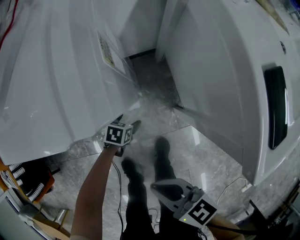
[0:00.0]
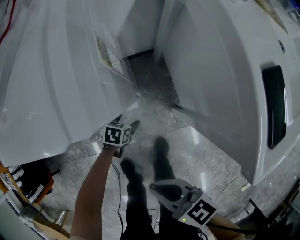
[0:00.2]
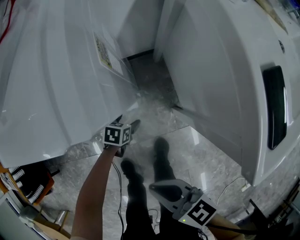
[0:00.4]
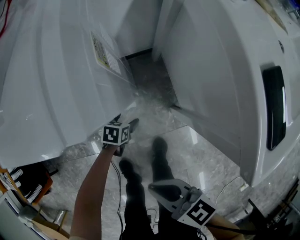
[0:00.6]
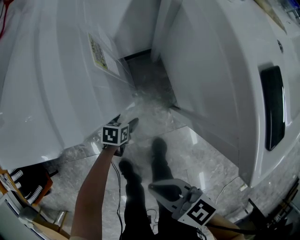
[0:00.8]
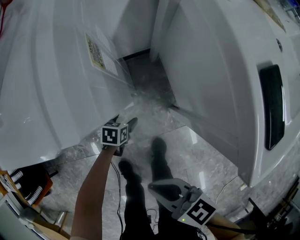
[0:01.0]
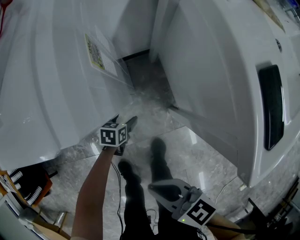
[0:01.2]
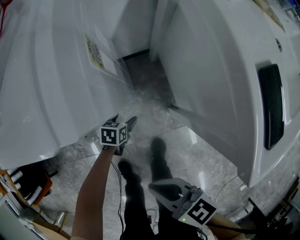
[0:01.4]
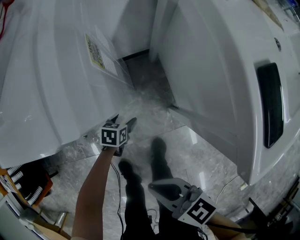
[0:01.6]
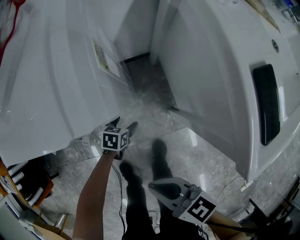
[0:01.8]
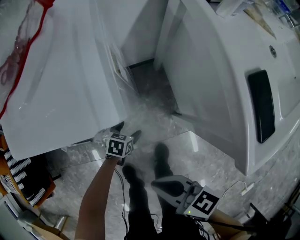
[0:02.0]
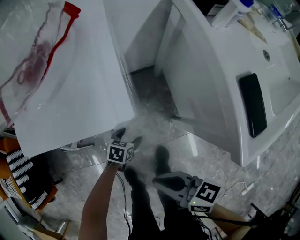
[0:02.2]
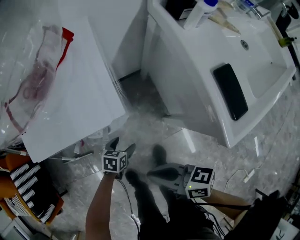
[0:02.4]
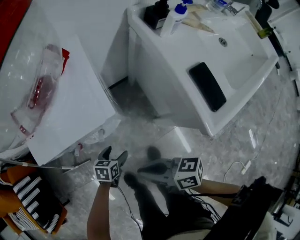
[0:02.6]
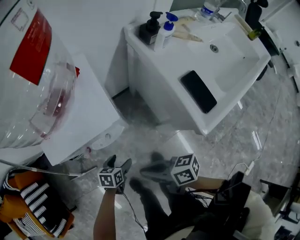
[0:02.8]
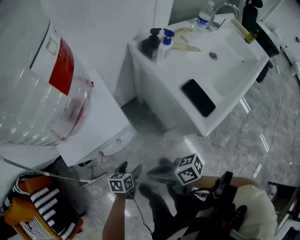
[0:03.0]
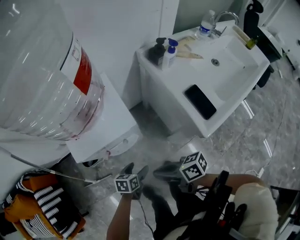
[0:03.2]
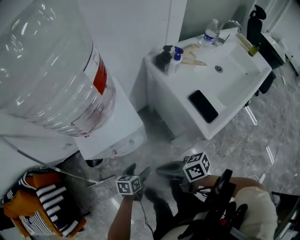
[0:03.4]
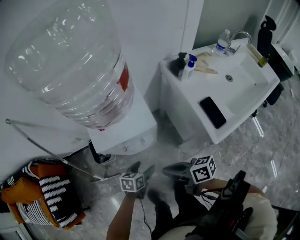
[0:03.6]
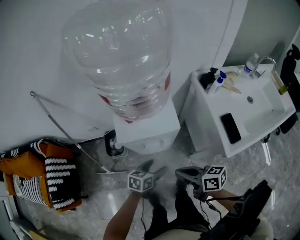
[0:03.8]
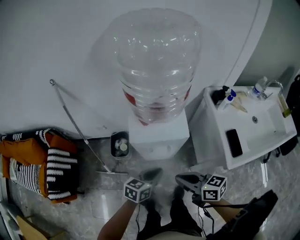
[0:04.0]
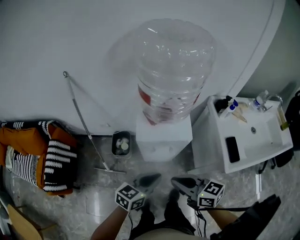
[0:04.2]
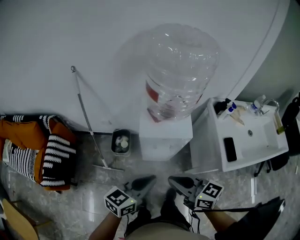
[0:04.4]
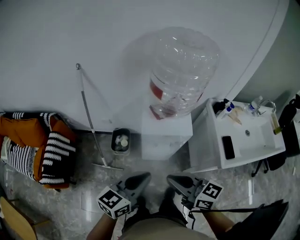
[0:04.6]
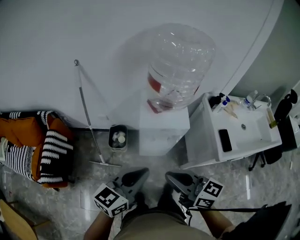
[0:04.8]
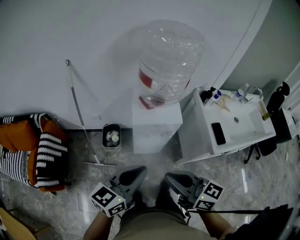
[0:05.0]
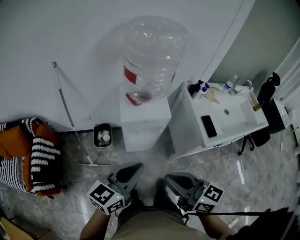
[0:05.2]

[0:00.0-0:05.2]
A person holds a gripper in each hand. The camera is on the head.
0:00.0 to 0:01.8: The grippers make only small movements.
0:01.8 to 0:03.4: The right gripper shifts approximately 15 cm upward, and turns by about 30 degrees; the left gripper goes about 30 cm upward.
0:03.4 to 0:05.2: The left gripper moves upward, approximately 40 cm, points its fingers roughly 40 degrees further upward, and closes its fingers. The right gripper heads upward, backward and to the left, covering about 30 cm, and changes its angle by approximately 40 degrees.

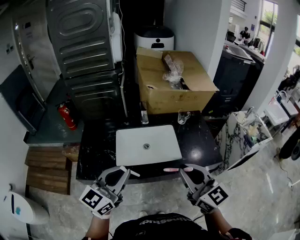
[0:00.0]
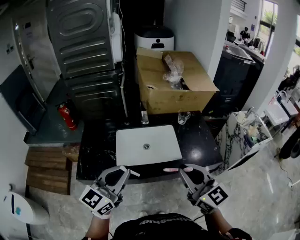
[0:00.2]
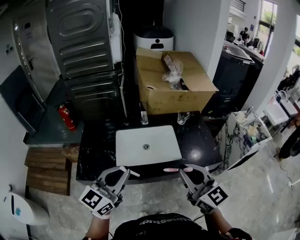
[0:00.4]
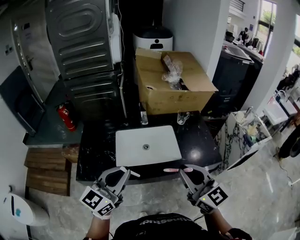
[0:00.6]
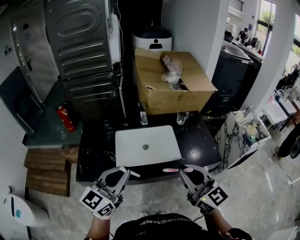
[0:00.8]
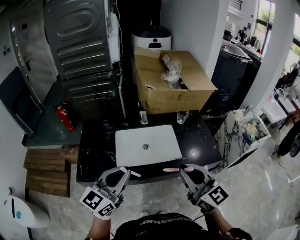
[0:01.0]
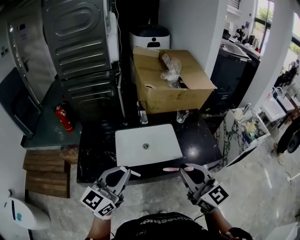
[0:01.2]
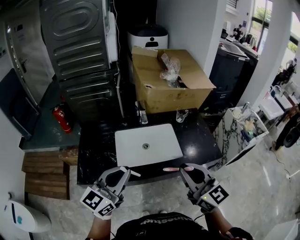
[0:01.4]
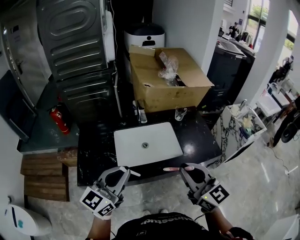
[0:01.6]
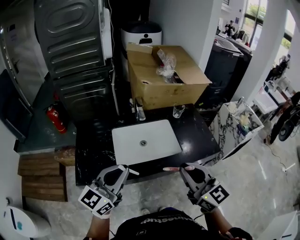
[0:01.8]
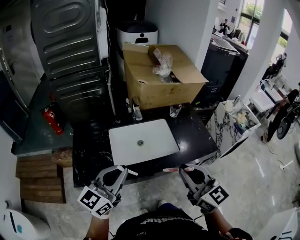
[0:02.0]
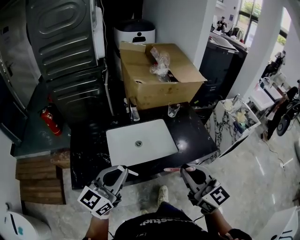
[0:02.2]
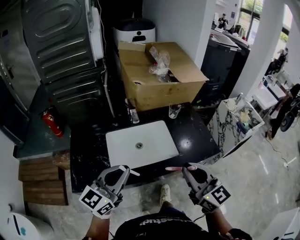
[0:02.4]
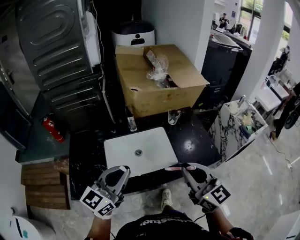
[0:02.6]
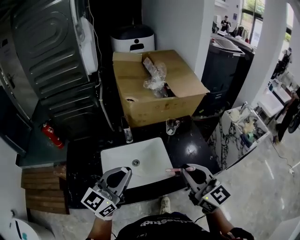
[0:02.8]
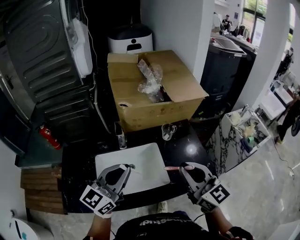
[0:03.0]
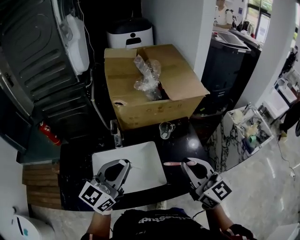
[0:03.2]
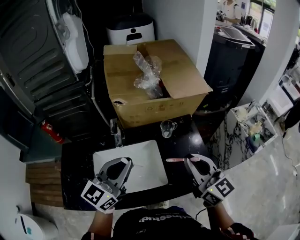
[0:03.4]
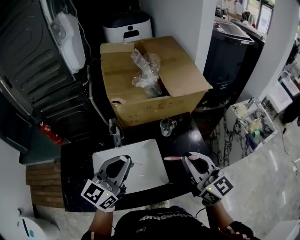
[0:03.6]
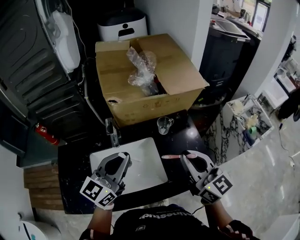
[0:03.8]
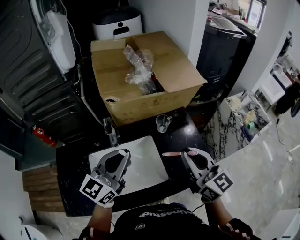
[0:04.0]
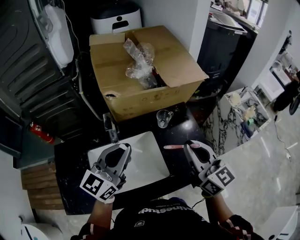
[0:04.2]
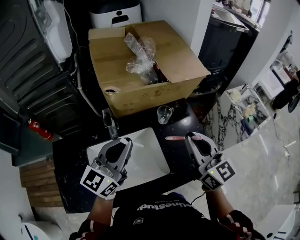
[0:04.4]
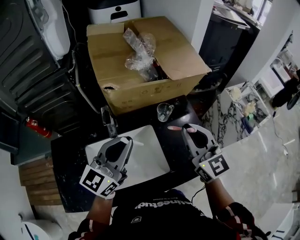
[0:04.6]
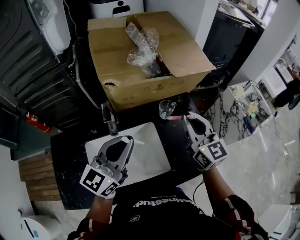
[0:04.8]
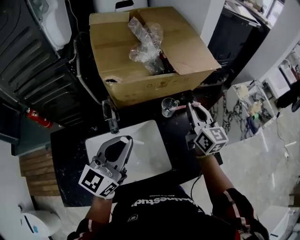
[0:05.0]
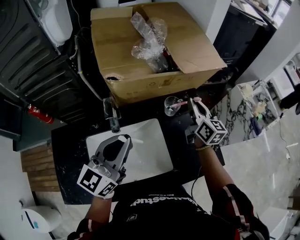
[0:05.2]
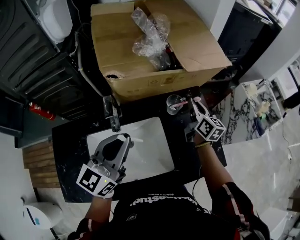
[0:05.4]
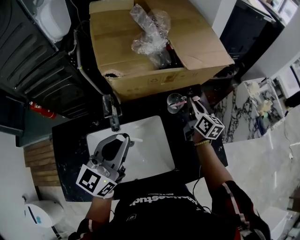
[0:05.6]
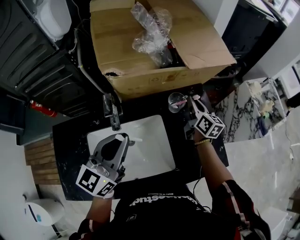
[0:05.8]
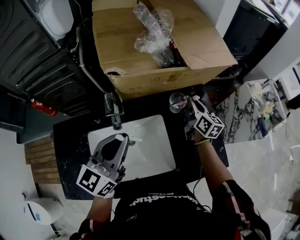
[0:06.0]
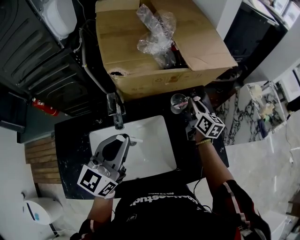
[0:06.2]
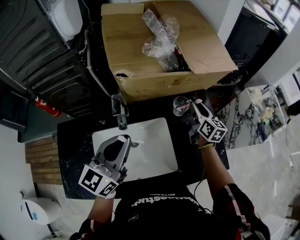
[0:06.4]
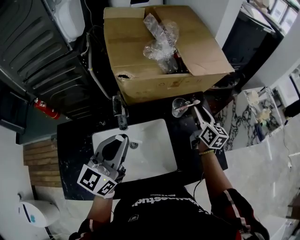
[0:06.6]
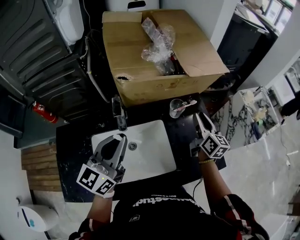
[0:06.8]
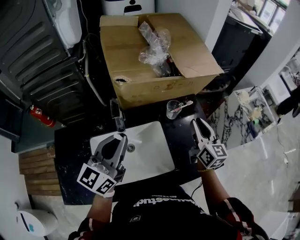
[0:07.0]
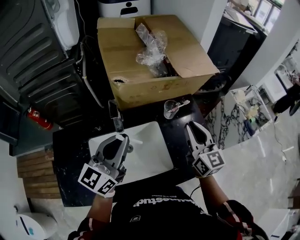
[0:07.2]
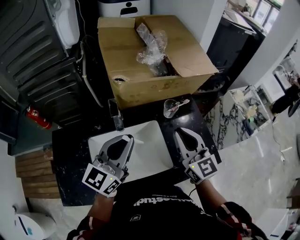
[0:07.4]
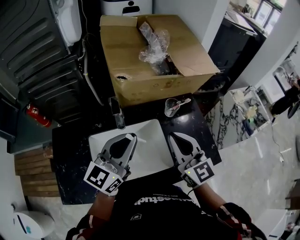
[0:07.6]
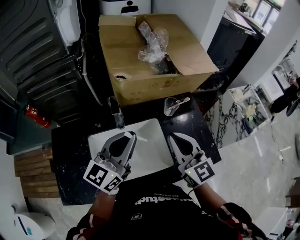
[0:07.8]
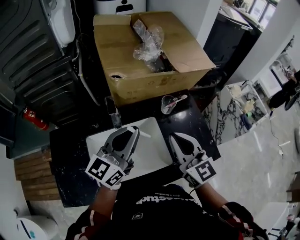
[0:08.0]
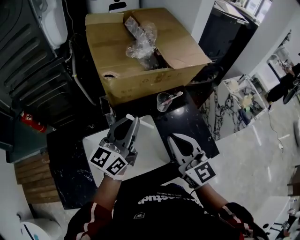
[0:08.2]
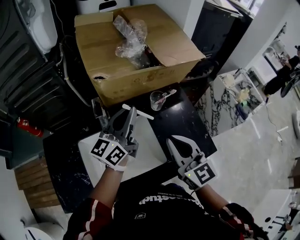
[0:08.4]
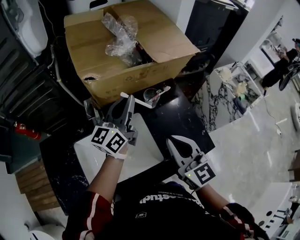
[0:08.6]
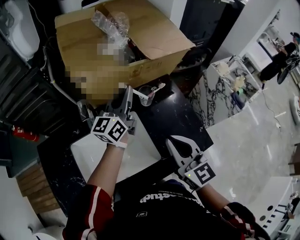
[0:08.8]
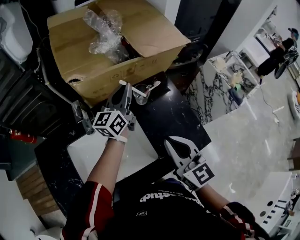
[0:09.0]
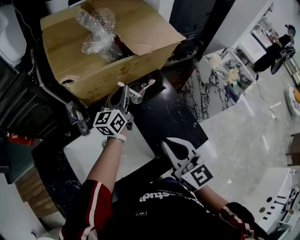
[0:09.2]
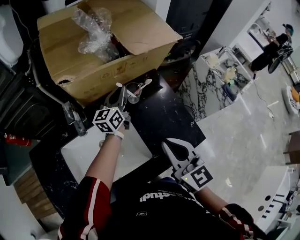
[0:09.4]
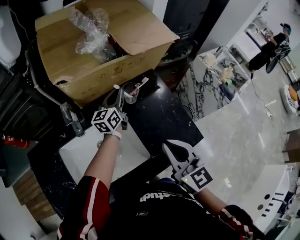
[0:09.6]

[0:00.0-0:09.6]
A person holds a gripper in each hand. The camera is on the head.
0:00.0 to 0:01.6: There are only small adjustments of the grippers.
0:01.6 to 0:03.2: Both grippers travel together forward and to the right, about 30 cm.
0:03.2 to 0:04.8: The right gripper heads forward, covering approximately 15 cm. Meanwhile the left gripper goes roughly 10 cm forward.
0:04.8 to 0:06.4: The left gripper moves roughly 5 cm, while the right gripper travels downward and forward by approximately 20 cm, changes its angle by about 30 degrees, and opens its fingers.
0:06.4 to 0:08.0: The right gripper shifts about 30 cm backward, upward and to the left, swivels some 30 degrees, and closes up.
0:08.0 to 0:09.6: The left gripper shifts some 30 cm forward, downward and to the right; the right gripper goes approximately 10 cm to the right and downward.

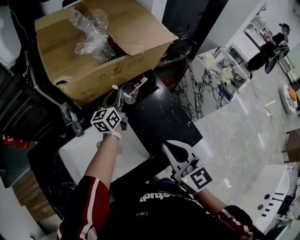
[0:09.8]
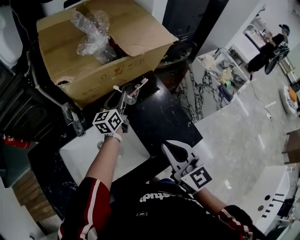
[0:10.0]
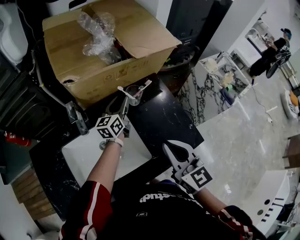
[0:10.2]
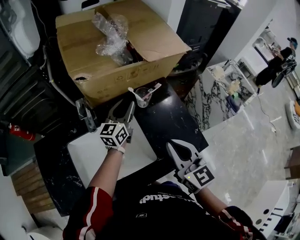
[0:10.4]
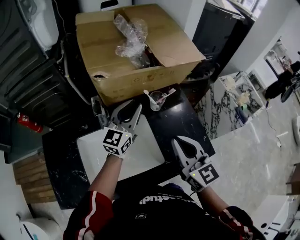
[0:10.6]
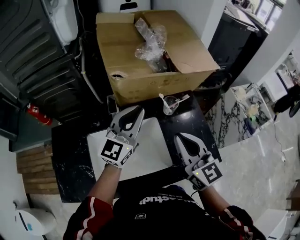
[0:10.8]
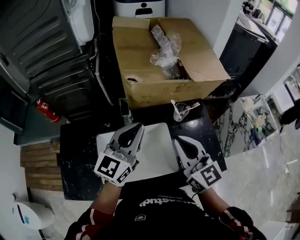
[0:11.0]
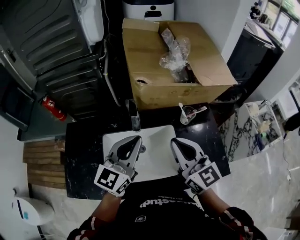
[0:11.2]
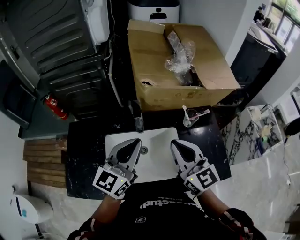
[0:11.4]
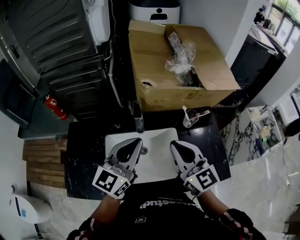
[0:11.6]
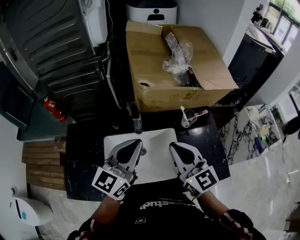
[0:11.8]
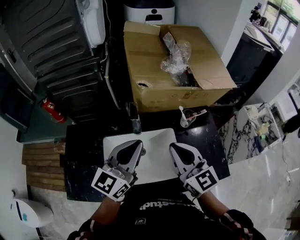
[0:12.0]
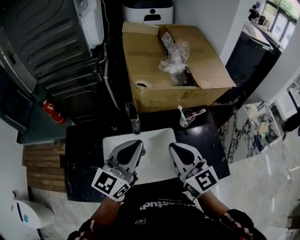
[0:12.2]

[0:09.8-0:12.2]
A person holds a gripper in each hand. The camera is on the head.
0:09.8 to 0:11.0: The right gripper goes some 15 cm to the left and upward, and swivels about 20 degrees; the left gripper heads backward, upward and to the left, covering approximately 30 cm, swivels approximately 30 degrees, and opens, then closes once more.
0:11.0 to 0:12.2: The left gripper moves about 5 cm.

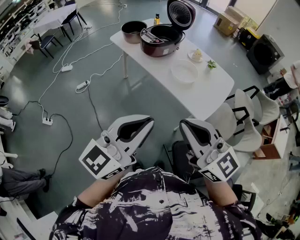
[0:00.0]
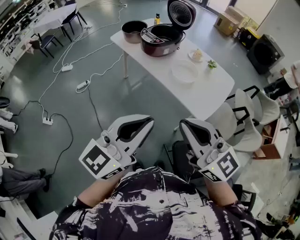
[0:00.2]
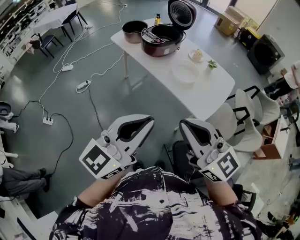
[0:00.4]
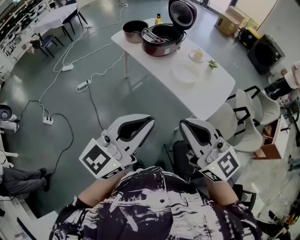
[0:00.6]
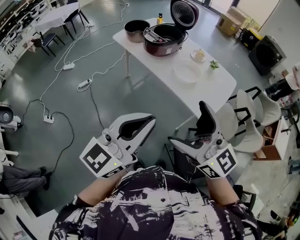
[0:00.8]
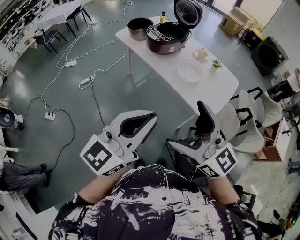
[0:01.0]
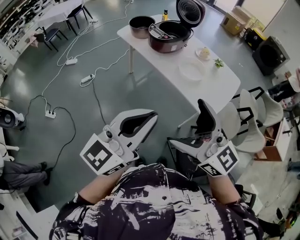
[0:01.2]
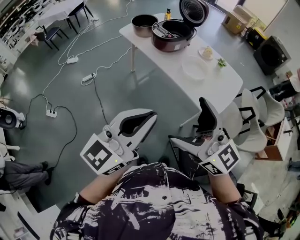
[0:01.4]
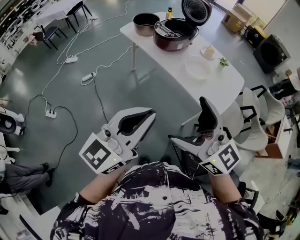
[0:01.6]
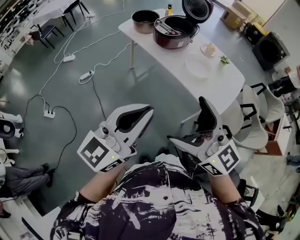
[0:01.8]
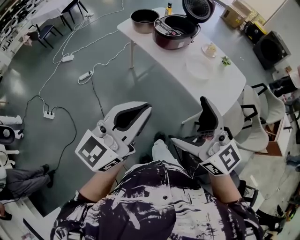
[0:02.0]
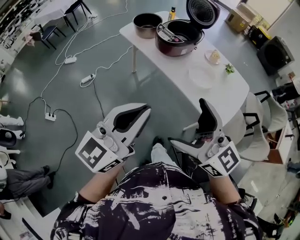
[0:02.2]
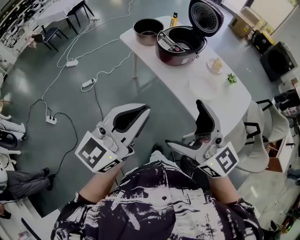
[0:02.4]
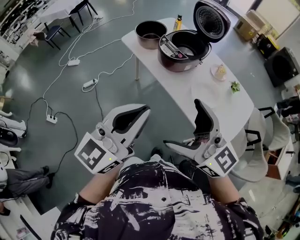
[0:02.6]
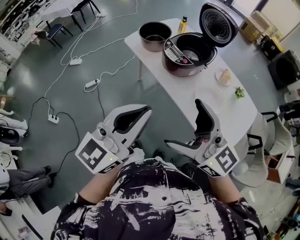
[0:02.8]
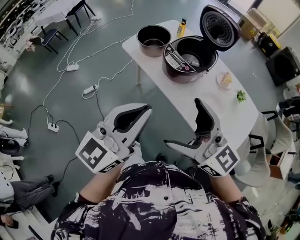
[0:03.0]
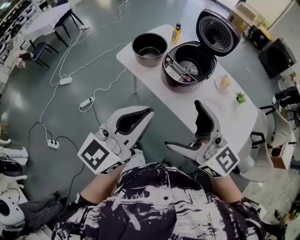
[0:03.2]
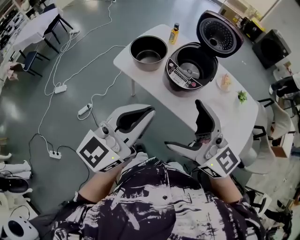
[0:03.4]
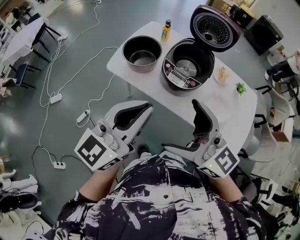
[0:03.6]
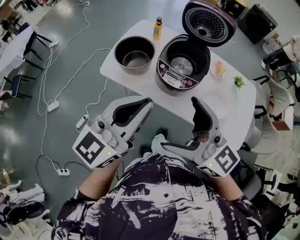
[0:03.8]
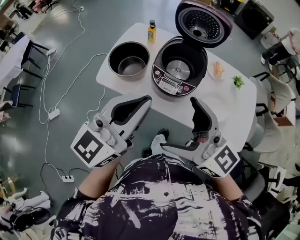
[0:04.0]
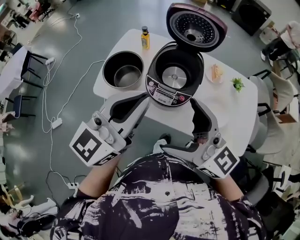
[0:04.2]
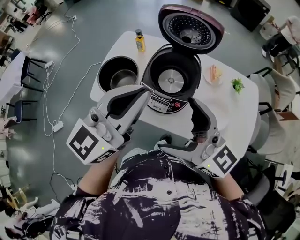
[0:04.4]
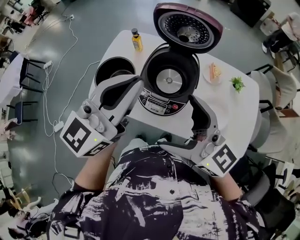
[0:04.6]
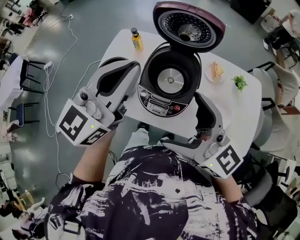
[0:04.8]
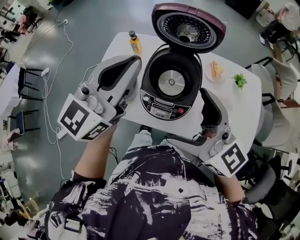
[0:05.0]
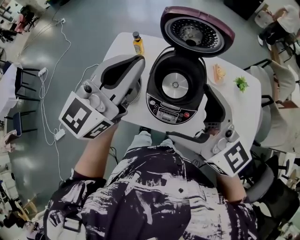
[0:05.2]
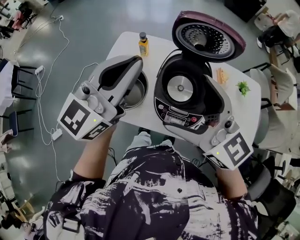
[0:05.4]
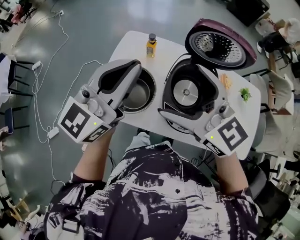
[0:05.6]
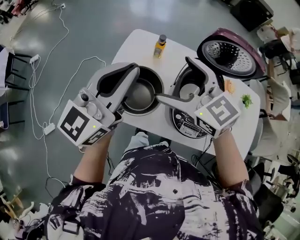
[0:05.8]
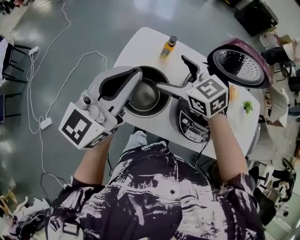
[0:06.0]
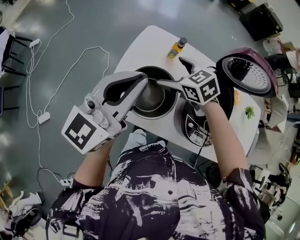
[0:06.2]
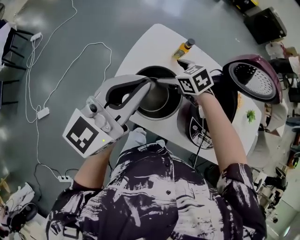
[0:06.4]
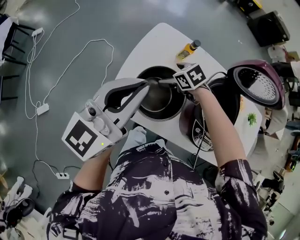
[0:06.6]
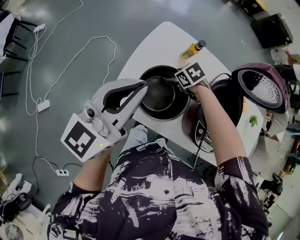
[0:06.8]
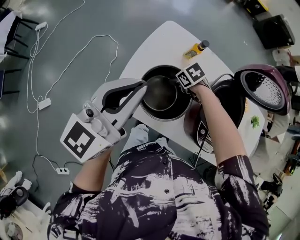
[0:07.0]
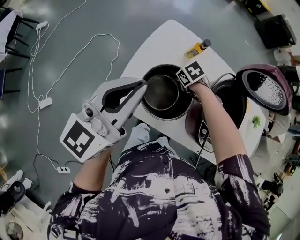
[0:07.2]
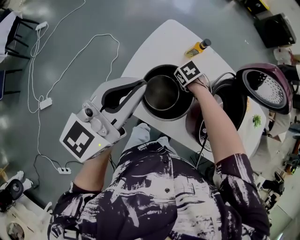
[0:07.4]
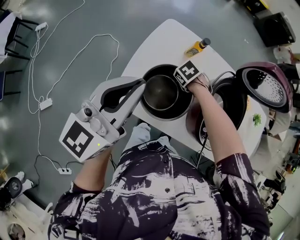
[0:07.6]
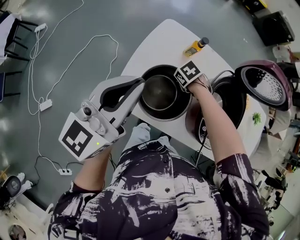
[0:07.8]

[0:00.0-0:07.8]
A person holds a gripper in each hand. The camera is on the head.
0:00.0 to 0:01.6: The grippers both shift to the left by roughly 10 cm. The right gripper opens.
0:01.6 to 0:03.2: The grippers both shift forward by approximately 40 cm.
0:03.2 to 0:04.6: Both grippers travel together forward, about 25 cm. The left gripper turns by roughly 20 degrees, while the right gripper swivels roughly 20 degrees.
0:04.6 to 0:06.2: The left gripper is displaced to the left and forward by approximately 30 cm. The right gripper moves forward, to the left and downward, roughly 50 cm, and points its fingers roughly 50 degrees further downward.
0:06.2 to 0:07.8: The left gripper shifts by some 5 cm, while the right gripper goes approximately 20 cm downward, tilts its fingers about 40 degrees downward, and closes.
